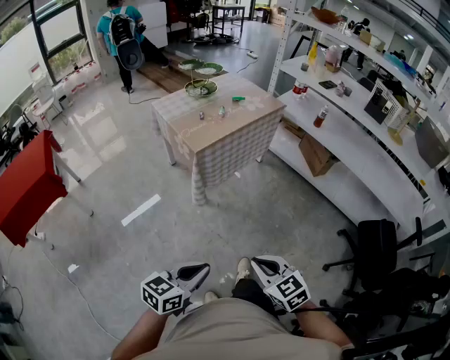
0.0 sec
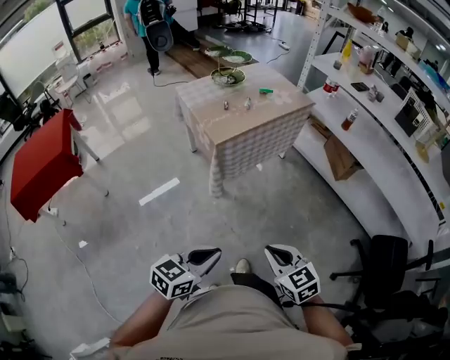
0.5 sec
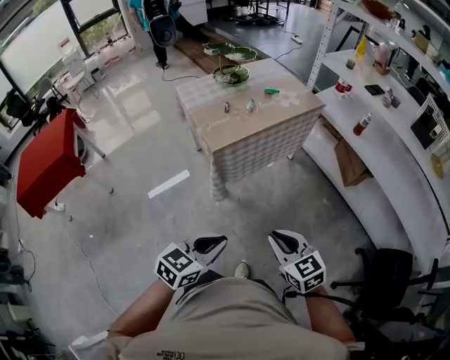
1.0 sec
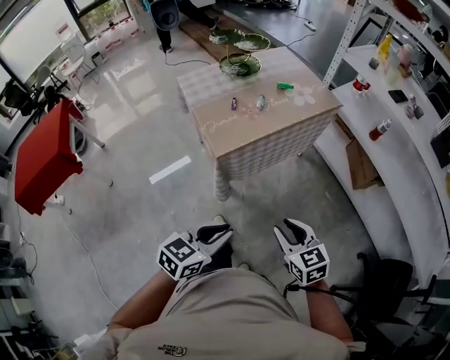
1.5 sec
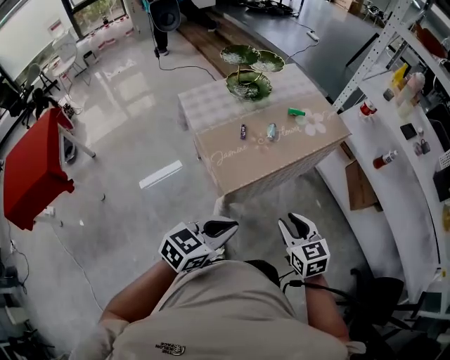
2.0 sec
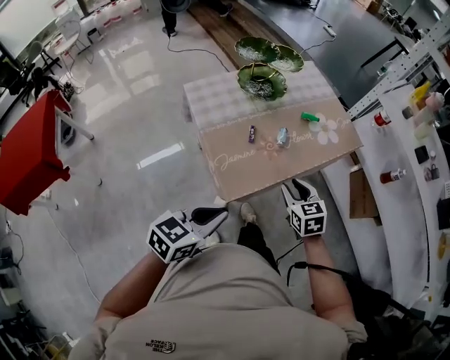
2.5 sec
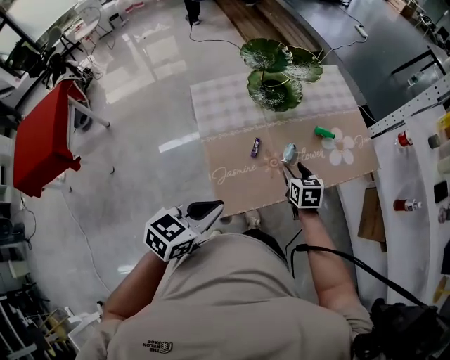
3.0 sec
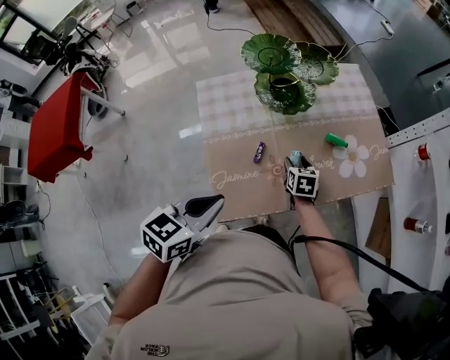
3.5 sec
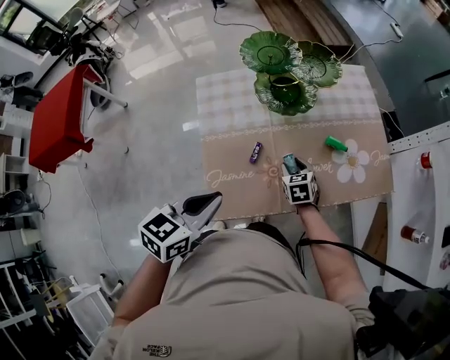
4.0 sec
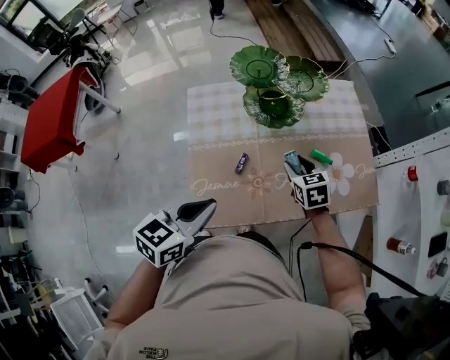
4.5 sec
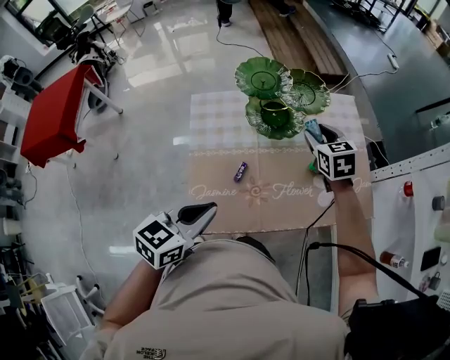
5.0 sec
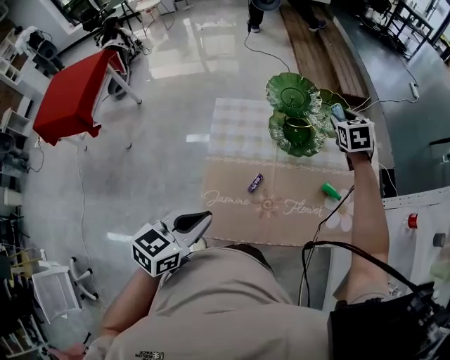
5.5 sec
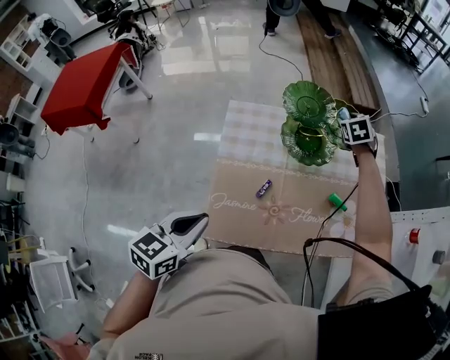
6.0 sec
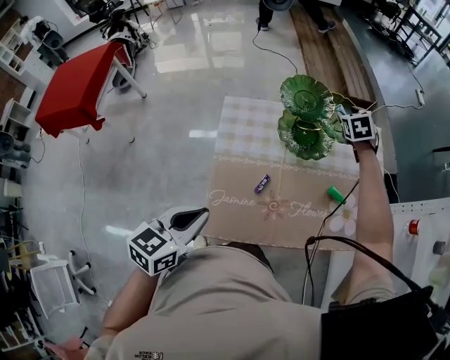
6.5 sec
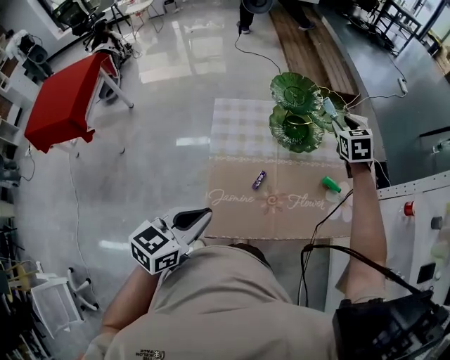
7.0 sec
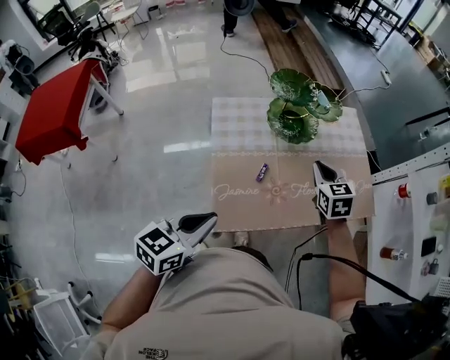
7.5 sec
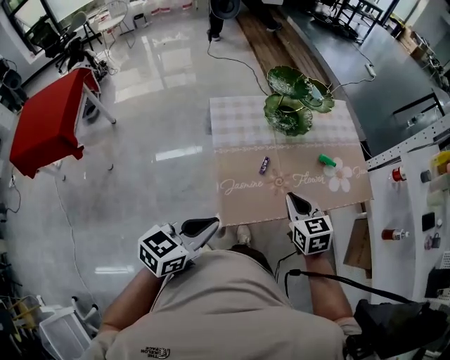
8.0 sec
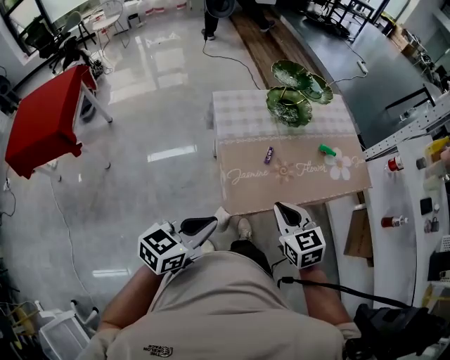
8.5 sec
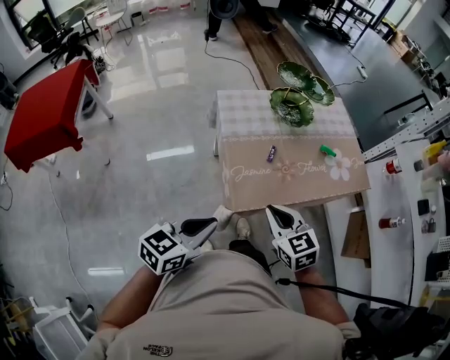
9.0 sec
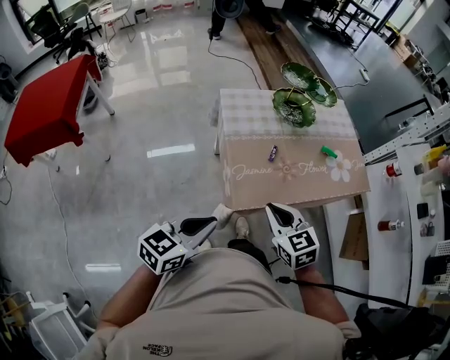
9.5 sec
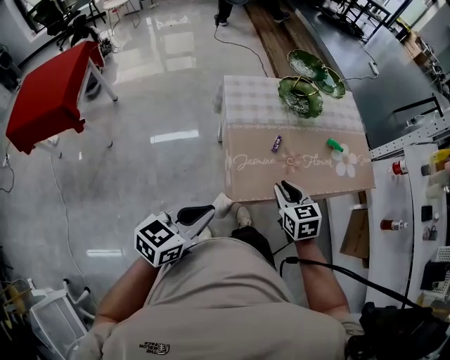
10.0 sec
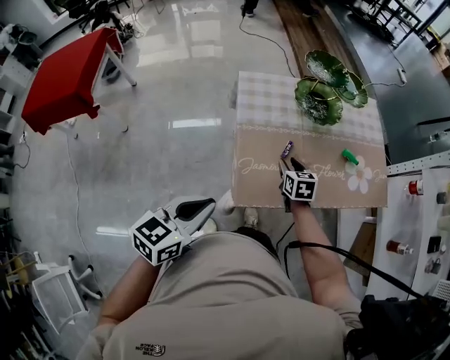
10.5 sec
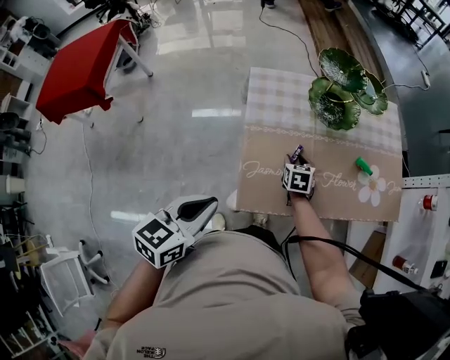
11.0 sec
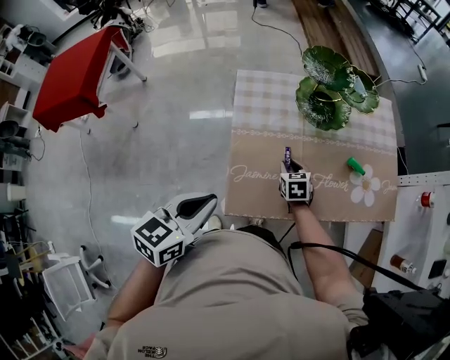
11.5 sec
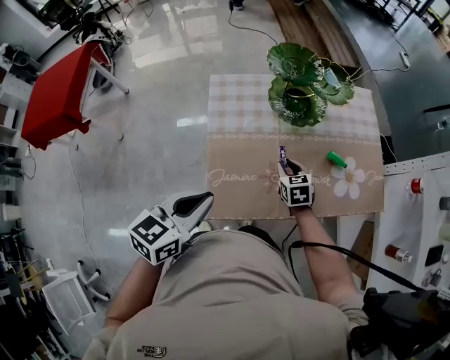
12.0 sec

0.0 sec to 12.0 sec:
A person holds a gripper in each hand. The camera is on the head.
0.0 sec to 2.0 sec: The two grippers travel together, forward, approximately 50 cm. The right gripper opens.
2.0 sec to 4.0 sec: The left gripper goes some 30 cm forward, and rotates approximately 30 degrees; the right gripper goes some 50 cm forward and downward, and swivels some 20 degrees.
4.0 sec to 6.0 sec: The right gripper heads forward and upward, covering some 40 cm, and swivels about 20 degrees. Meanwhile the left gripper ends up about 5 cm from where it was.
6.0 sec to 8.0 sec: The left gripper shifts roughly 10 cm backward, and rotates some 20 degrees; the right gripper heads backward, covering some 50 cm, swivels about 30 degrees, and closes.
8.0 sec to 10.0 sec: The left gripper travels backward by about 5 cm. The right gripper heads backward and to the left, covering about 10 cm.
10.0 sec to 12.0 sec: The left gripper is displaced forward and to the right by some 20 cm. Meanwhile the right gripper is displaced forward and downward by approximately 25 cm, and opens, then closes again.

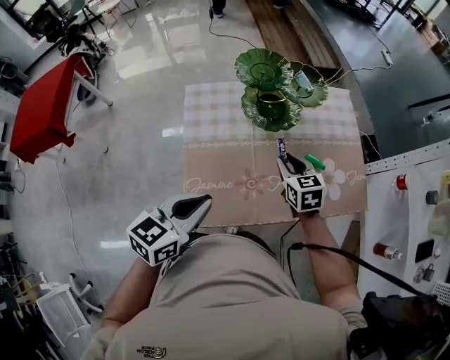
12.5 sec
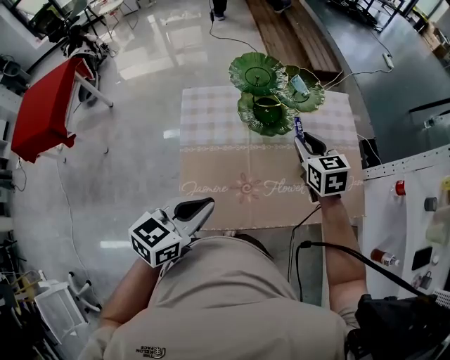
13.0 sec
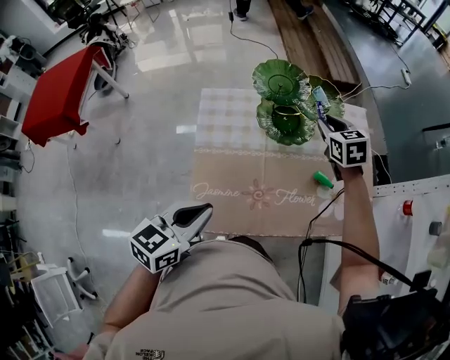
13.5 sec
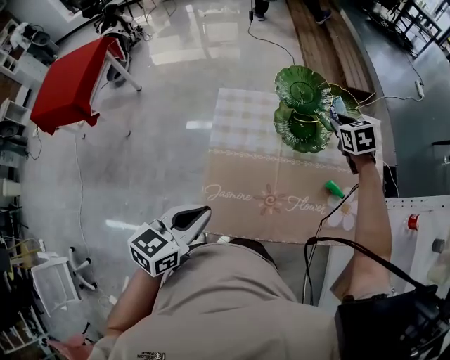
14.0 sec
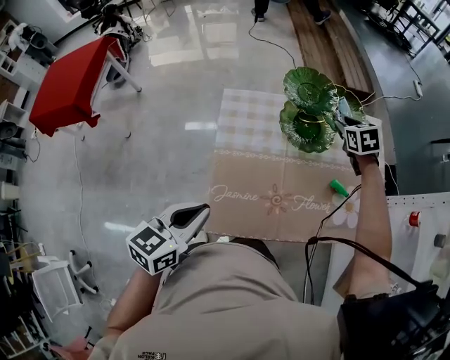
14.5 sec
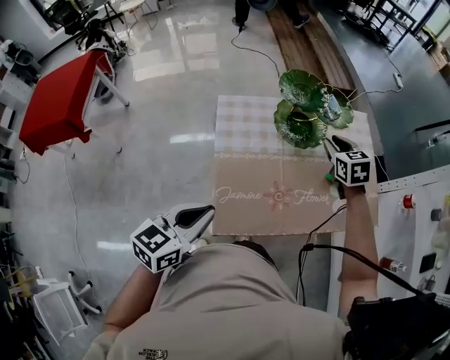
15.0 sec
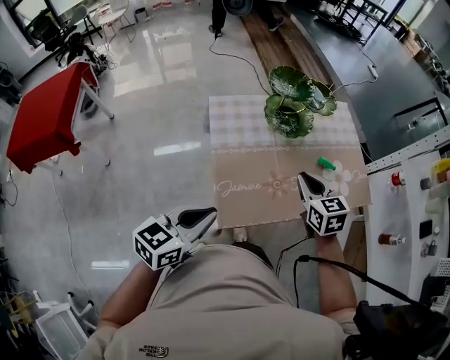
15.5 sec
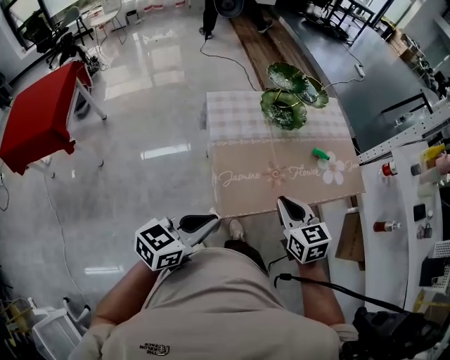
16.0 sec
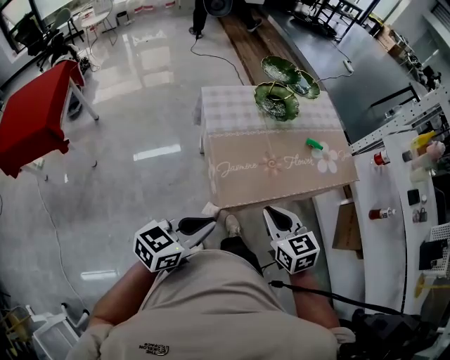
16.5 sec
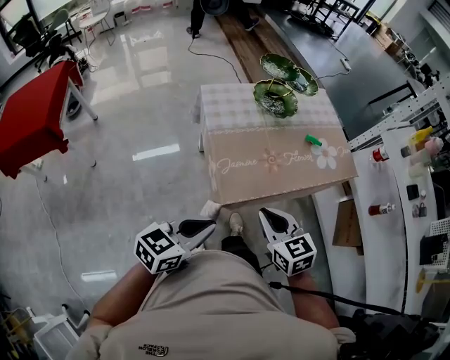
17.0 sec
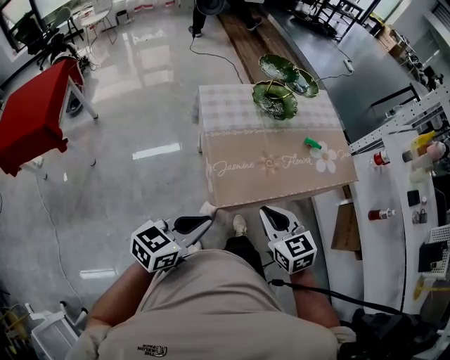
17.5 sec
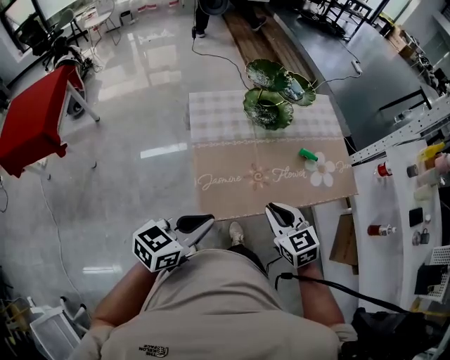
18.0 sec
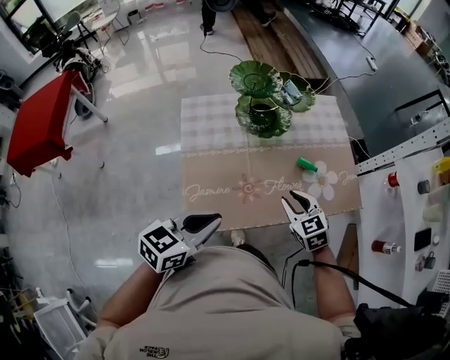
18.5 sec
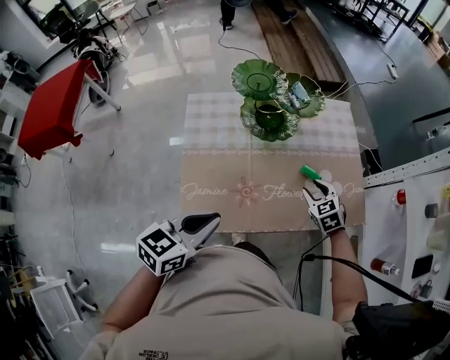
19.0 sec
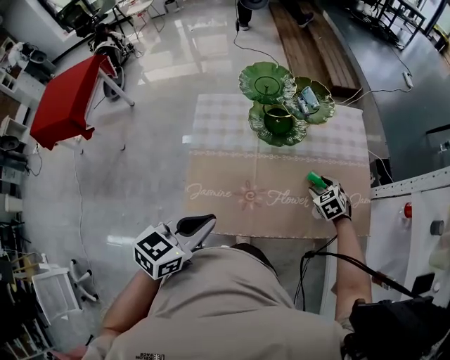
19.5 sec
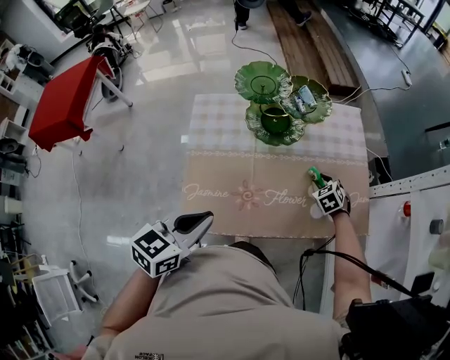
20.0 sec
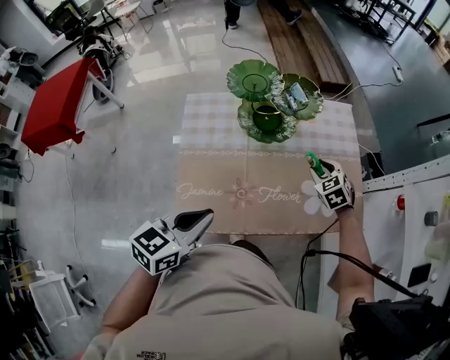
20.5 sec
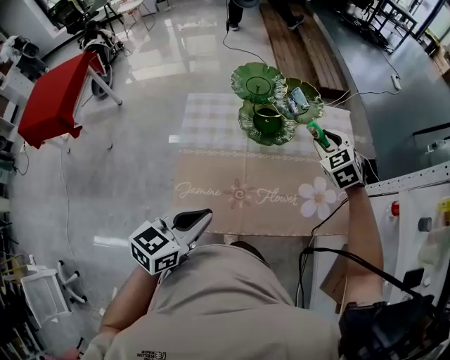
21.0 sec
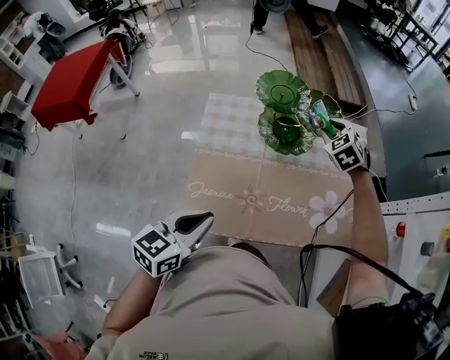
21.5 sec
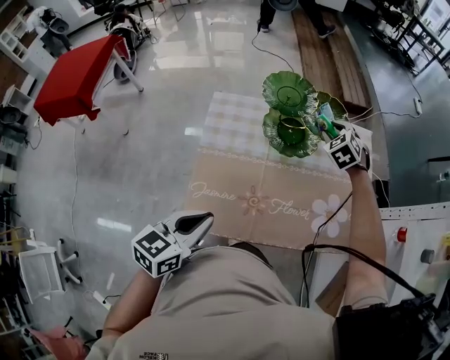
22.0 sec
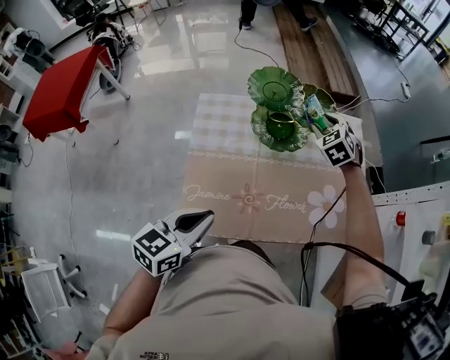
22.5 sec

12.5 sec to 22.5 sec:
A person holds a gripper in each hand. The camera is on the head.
12.5 sec to 14.5 sec: The right gripper travels forward by some 20 cm. The left gripper travels to the left by about 10 cm.
14.5 sec to 16.5 sec: The right gripper goes about 60 cm backward, changes its angle by approximately 20 degrees, and closes up. The left gripper is displaced backward by about 20 cm, and changes its angle by roughly 30 degrees.
16.5 sec to 18.5 sec: Both grippers travel together forward and to the right, roughly 25 cm. The right gripper opens.
18.5 sec to 20.5 sec: The left gripper ends up about 5 cm from where it was. Meanwhile the right gripper shifts about 20 cm forward and to the right.
20.5 sec to 22.5 sec: The right gripper moves forward, to the left and upward, some 20 cm.

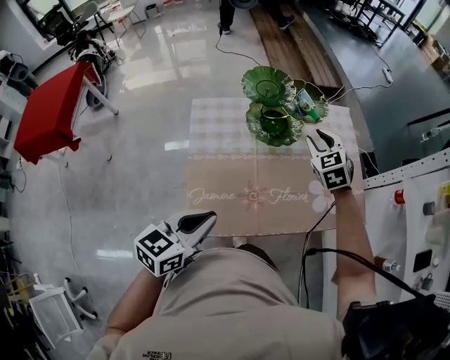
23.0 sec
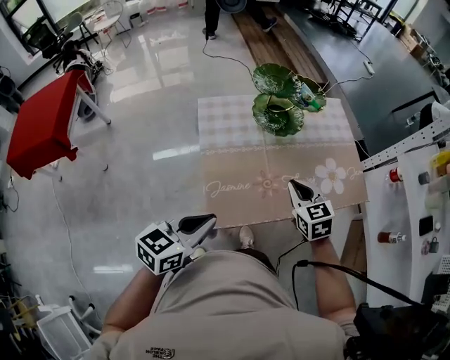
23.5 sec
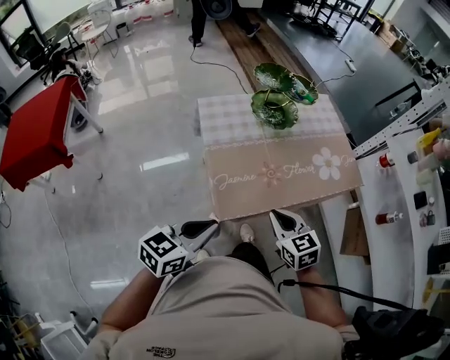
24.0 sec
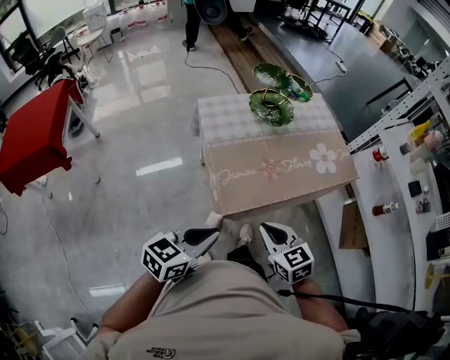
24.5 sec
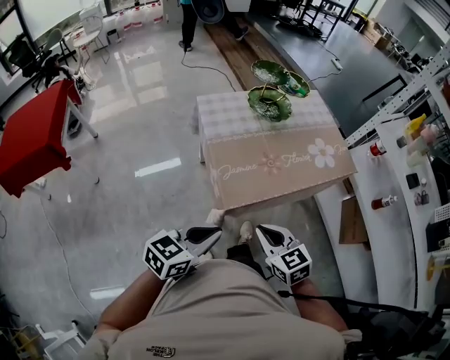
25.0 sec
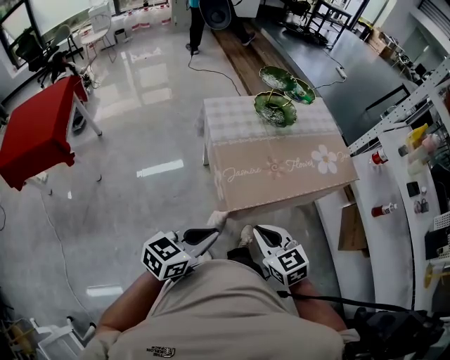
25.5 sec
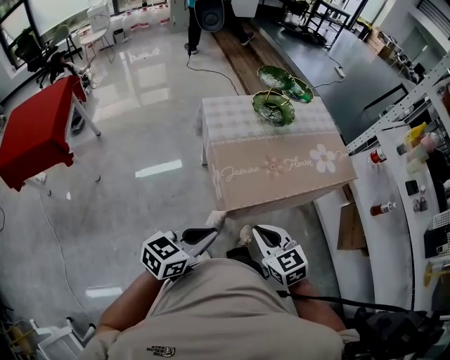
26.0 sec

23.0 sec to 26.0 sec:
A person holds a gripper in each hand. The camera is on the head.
23.0 sec to 24.5 sec: The left gripper moves backward and to the left, approximately 25 cm. Meanwhile the right gripper goes some 50 cm backward, turns by about 30 degrees, and closes up.
24.5 sec to 26.0 sec: The right gripper moves roughly 5 cm.

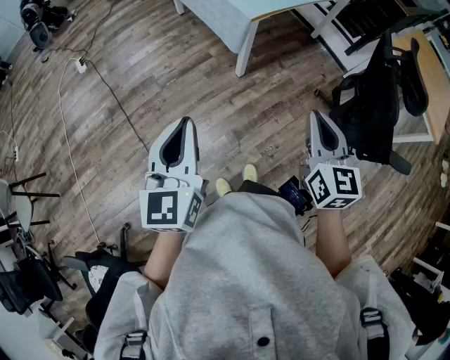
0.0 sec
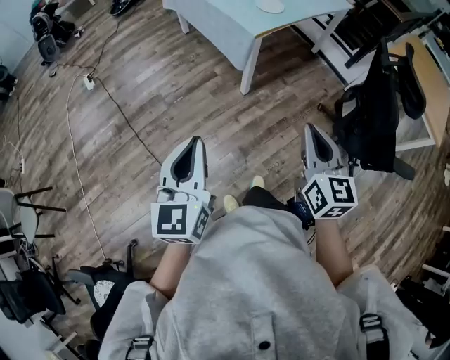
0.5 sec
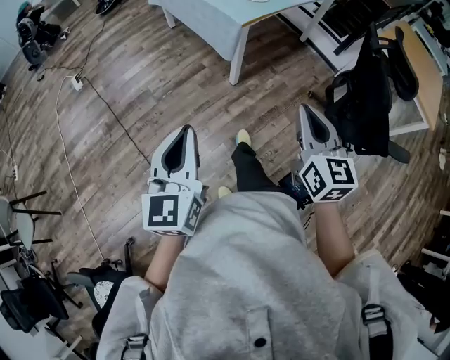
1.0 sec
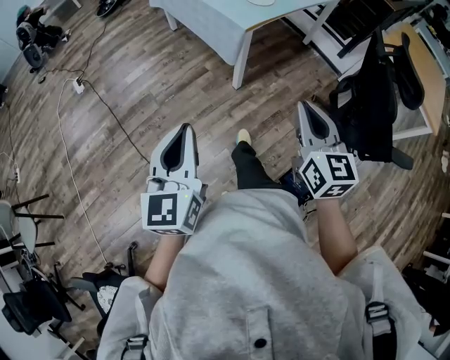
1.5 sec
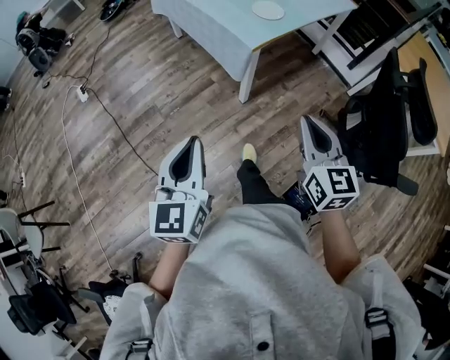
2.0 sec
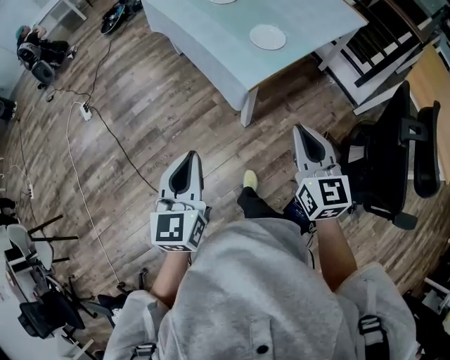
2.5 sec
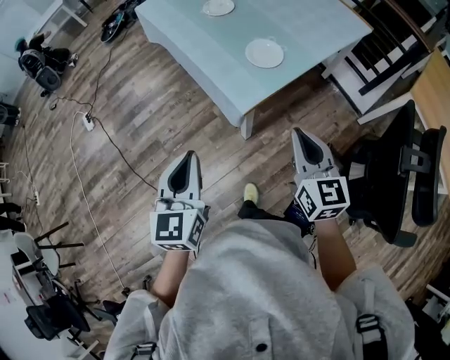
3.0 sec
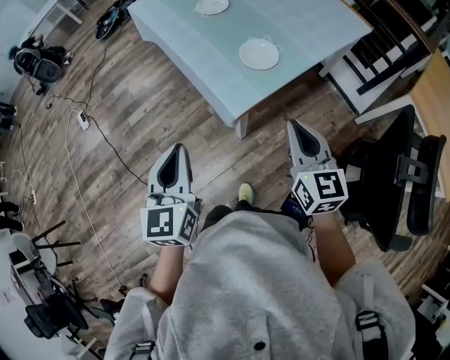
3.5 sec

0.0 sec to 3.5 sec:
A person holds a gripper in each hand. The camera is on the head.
0.0 sec to 2.0 sec: The two grippers go some 10 cm forward.
2.0 sec to 3.5 sec: The grippers both shift forward by some 30 cm.
